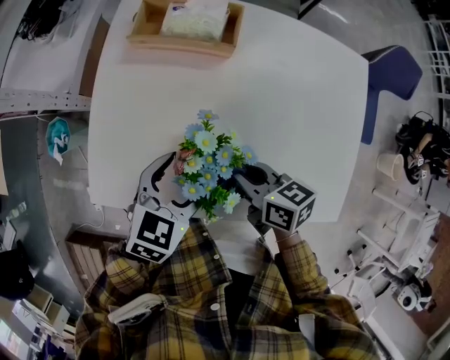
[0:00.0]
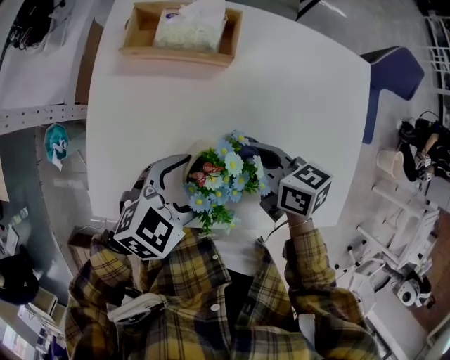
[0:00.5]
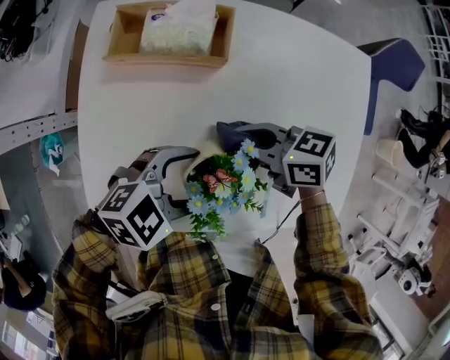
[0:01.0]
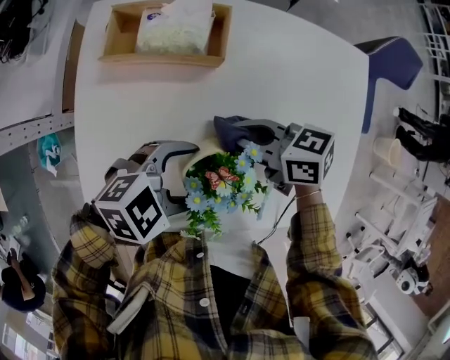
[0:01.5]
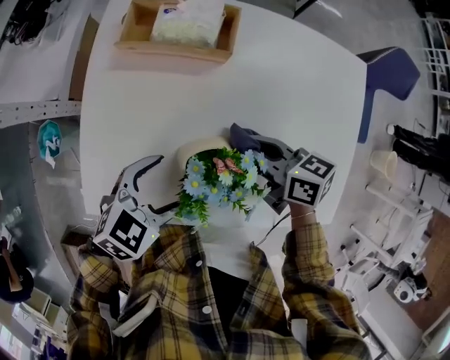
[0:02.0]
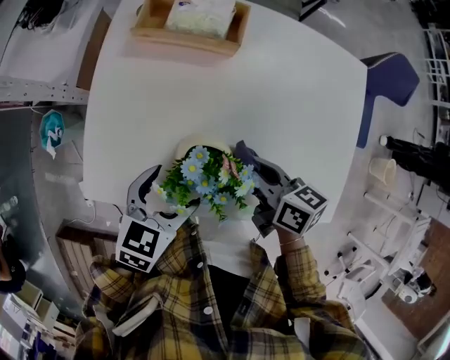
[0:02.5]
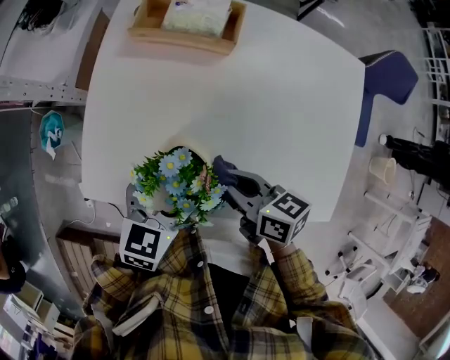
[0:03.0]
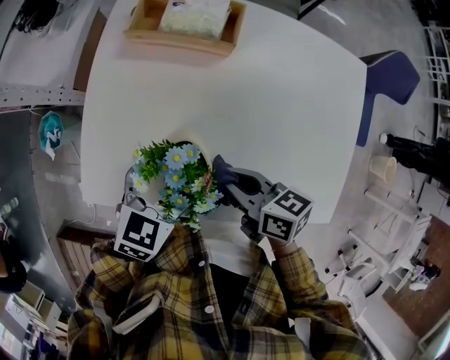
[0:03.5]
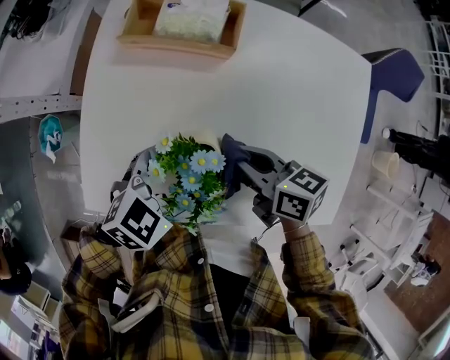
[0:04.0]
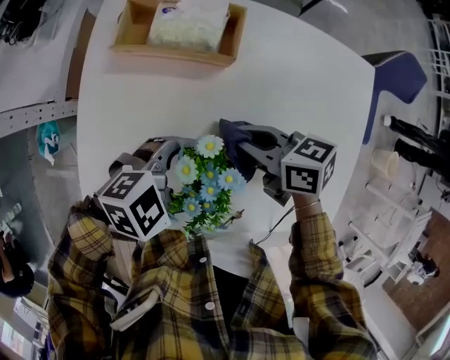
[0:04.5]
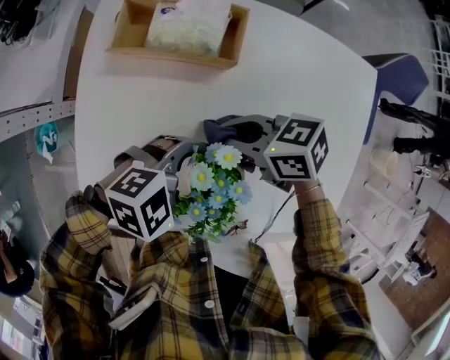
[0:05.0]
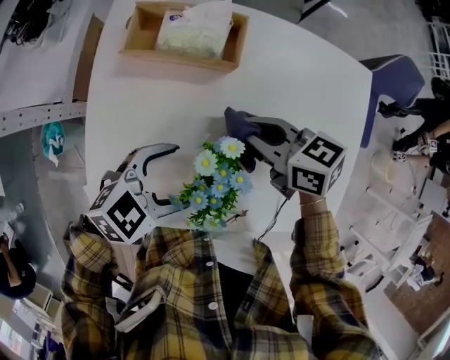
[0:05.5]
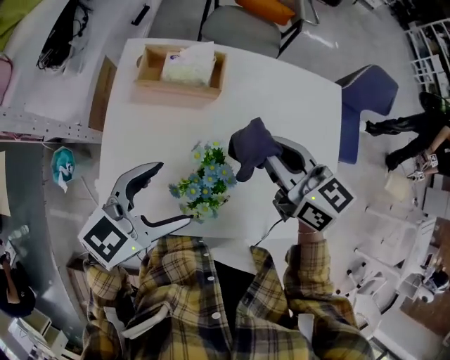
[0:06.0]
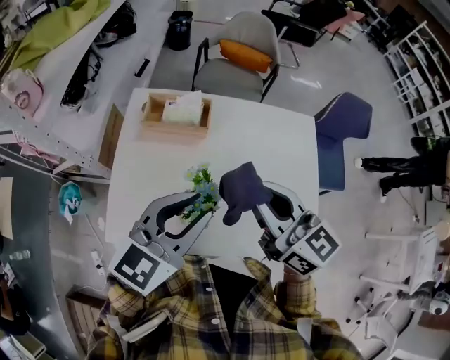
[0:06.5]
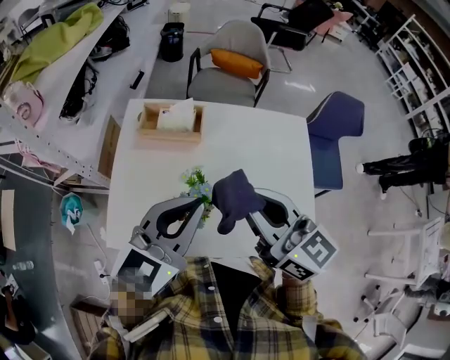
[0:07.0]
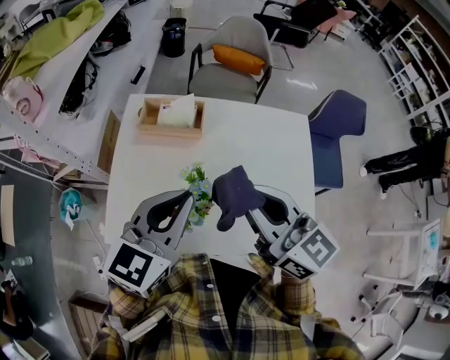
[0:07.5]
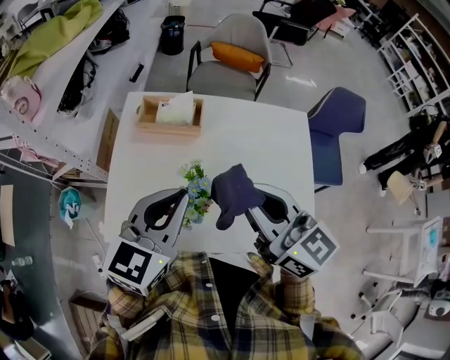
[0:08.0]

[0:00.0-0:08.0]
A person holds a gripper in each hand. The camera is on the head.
0:00.0 to 0:02.0: The right gripper changes place by about 10 cm.
0:04.0 to 0:06.0: Both grippers move upward, approximately 15 cm. The right gripper turns by roughly 30 degrees.
0:06.0 to 0:08.0: The left gripper moves upward, some 10 cm, turns by some 20 degrees, and closes its fingers. The right gripper shifts roughly 15 cm upward and backward.

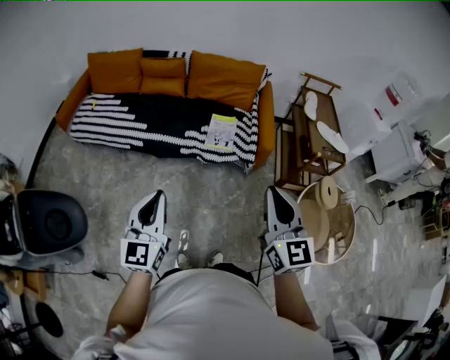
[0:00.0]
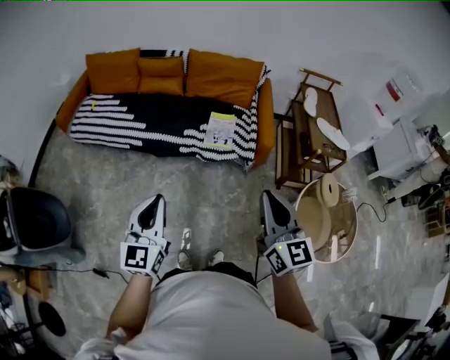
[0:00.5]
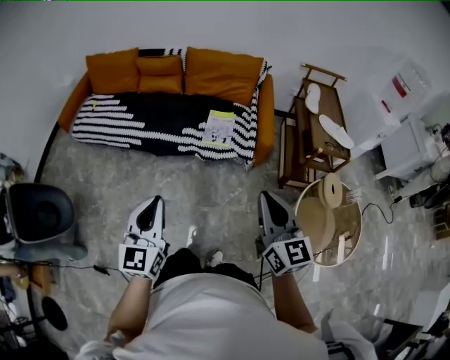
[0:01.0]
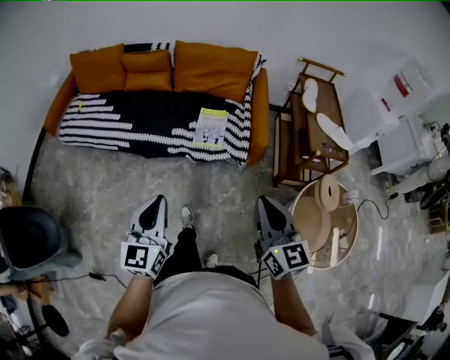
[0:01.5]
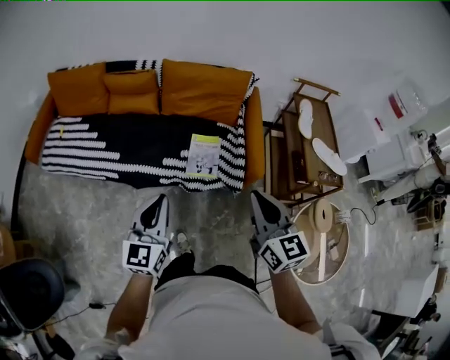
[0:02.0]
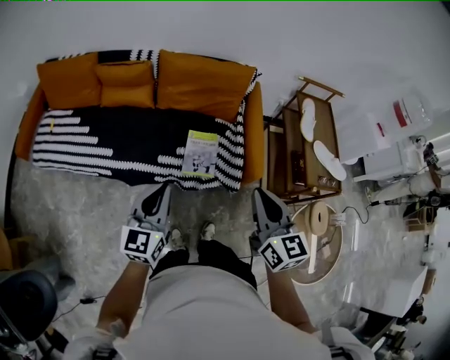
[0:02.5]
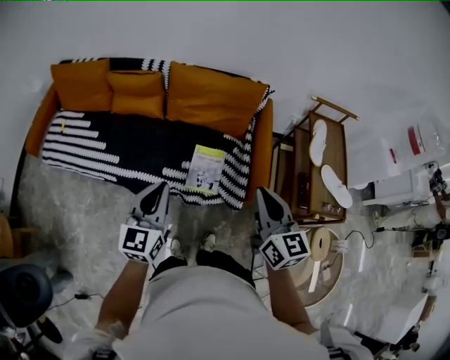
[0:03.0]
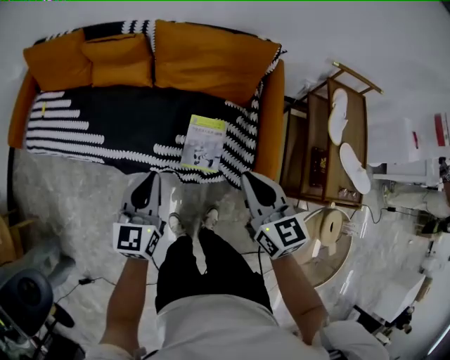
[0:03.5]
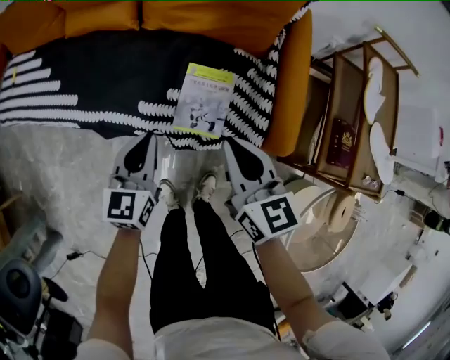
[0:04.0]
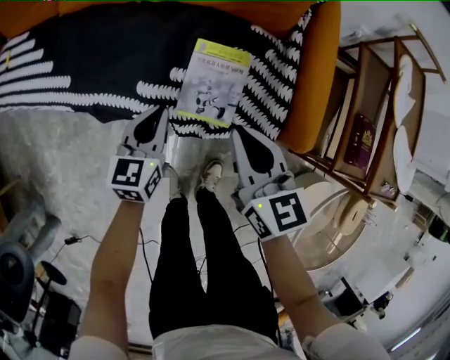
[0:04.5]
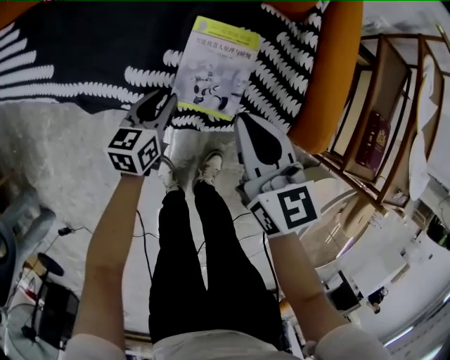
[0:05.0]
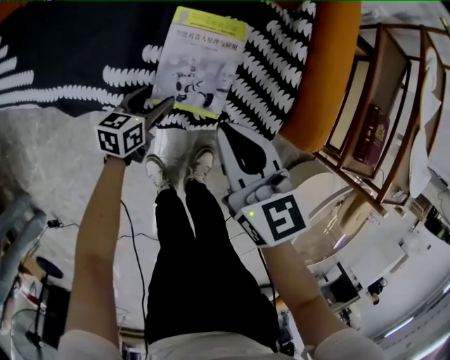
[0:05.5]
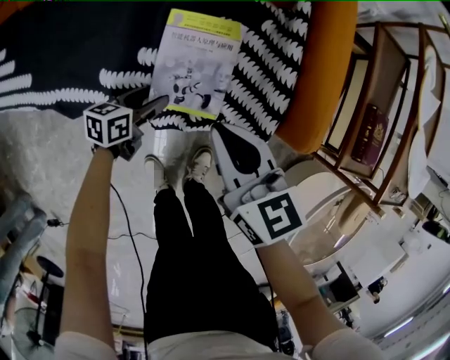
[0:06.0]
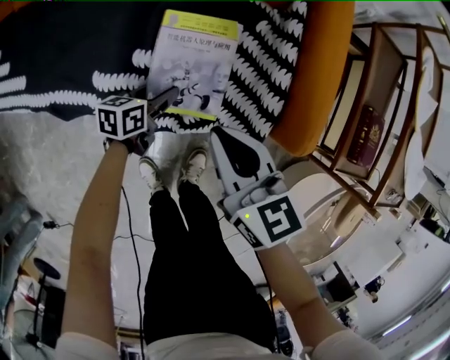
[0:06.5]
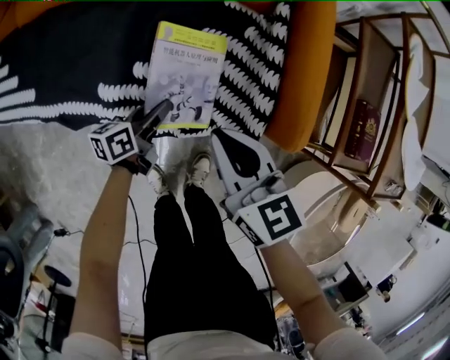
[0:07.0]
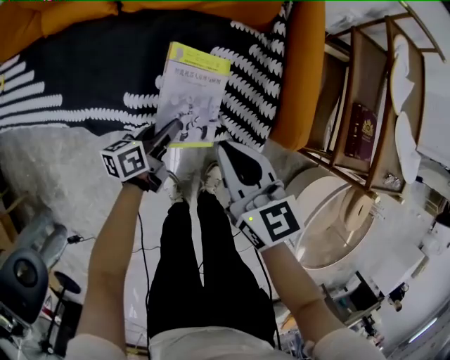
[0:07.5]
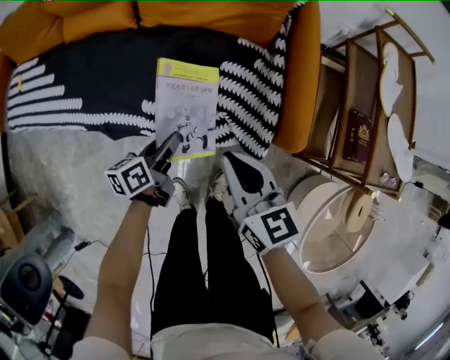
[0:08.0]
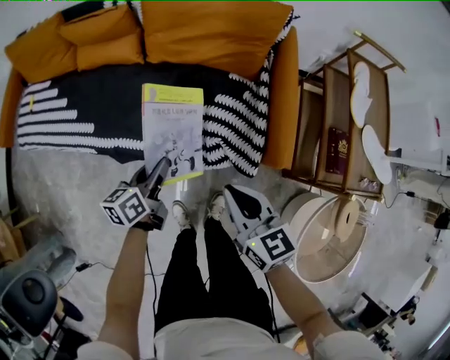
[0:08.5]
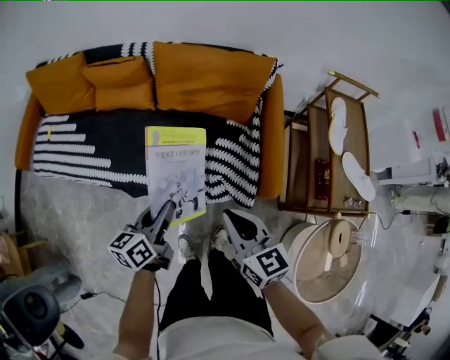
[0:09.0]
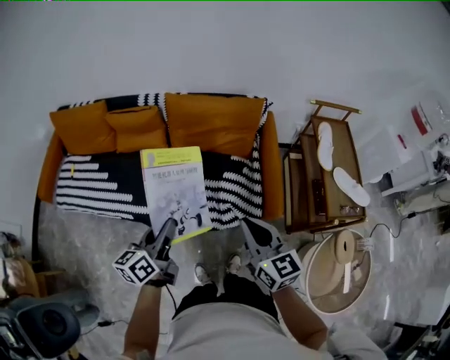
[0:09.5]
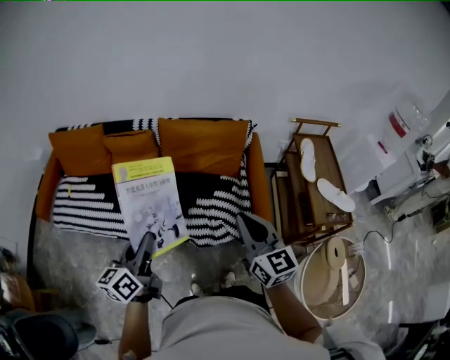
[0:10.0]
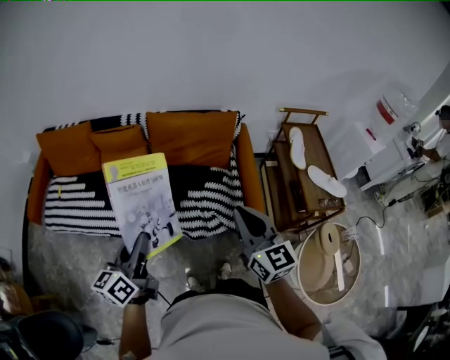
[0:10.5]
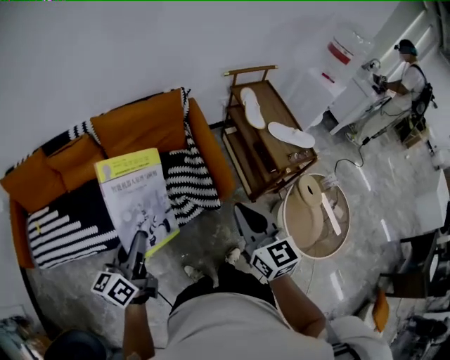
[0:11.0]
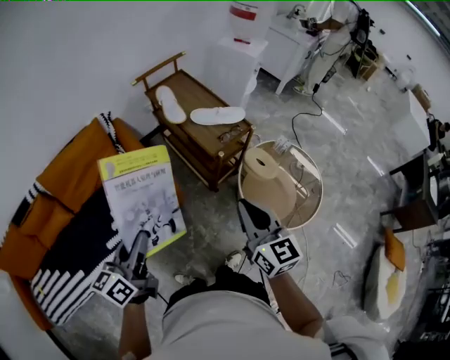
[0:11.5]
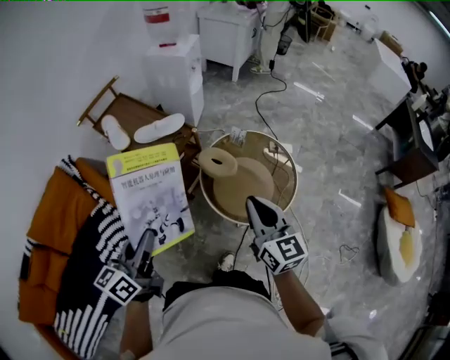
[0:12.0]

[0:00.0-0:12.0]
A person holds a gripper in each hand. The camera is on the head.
0:00.0 to 0:02.0: The two grippers go about 30 cm forward.
0:02.0 to 0:04.0: Both grippers move forward and downward, roughly 40 cm.
0:04.0 to 0:06.0: The right gripper heads downward, covering some 15 cm; the left gripper shifts approximately 30 cm downward, rotates some 40 degrees, and opens up.
0:06.0 to 0:08.0: The left gripper shifts about 15 cm upward and to the right, and closes its fingers, while the right gripper moves to the right and backward, some 10 cm.
0:08.0 to 0:10.0: The right gripper shifts roughly 15 cm to the right, downward and forward, and turns by roughly 20 degrees, while the left gripper reaches approximately 20 cm downward, then returns.
0:10.0 to 0:12.0: The pair of grippers is taken some 60 cm. The right gripper turns by approximately 60 degrees. Meanwhile the left gripper rotates some 60 degrees.

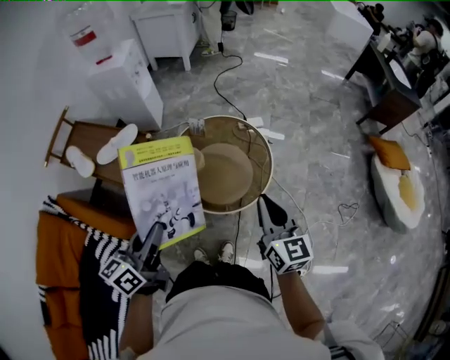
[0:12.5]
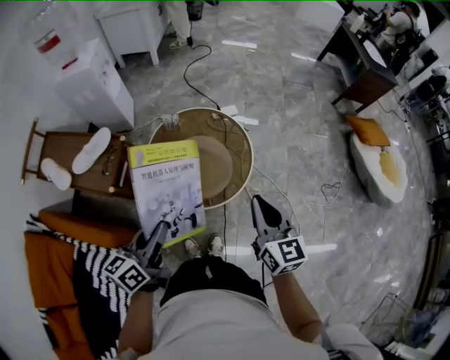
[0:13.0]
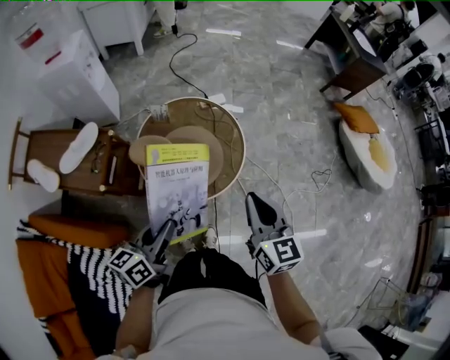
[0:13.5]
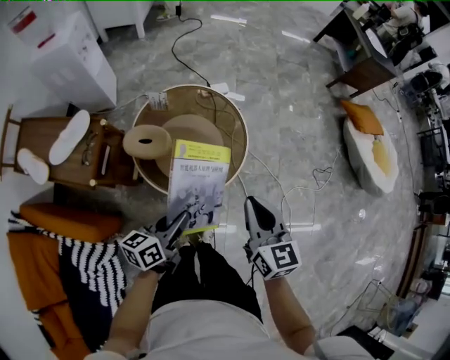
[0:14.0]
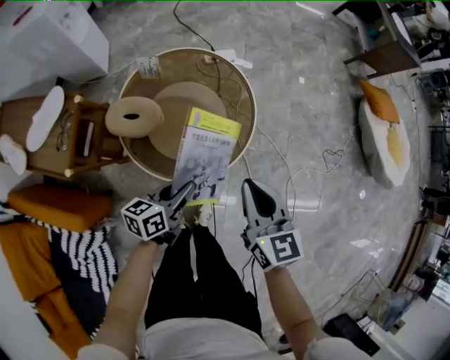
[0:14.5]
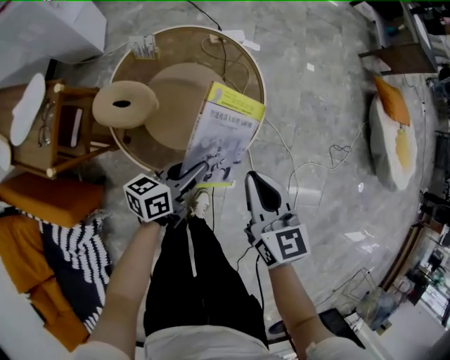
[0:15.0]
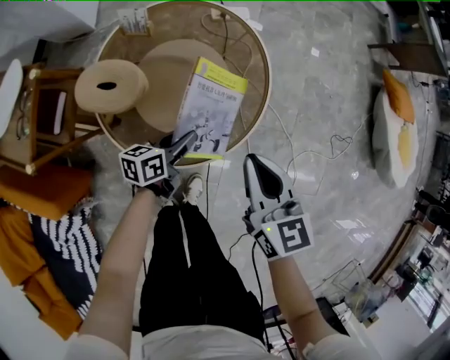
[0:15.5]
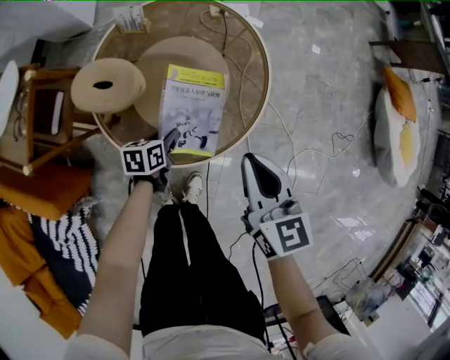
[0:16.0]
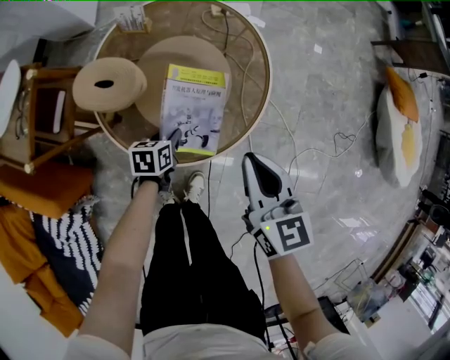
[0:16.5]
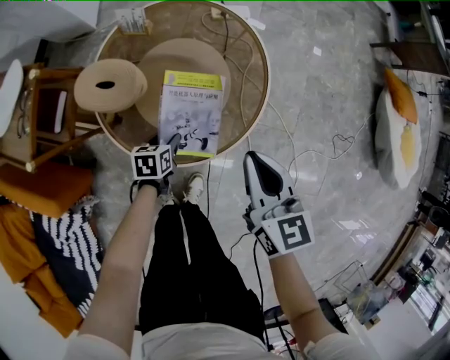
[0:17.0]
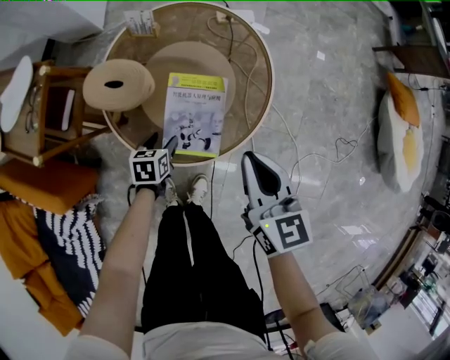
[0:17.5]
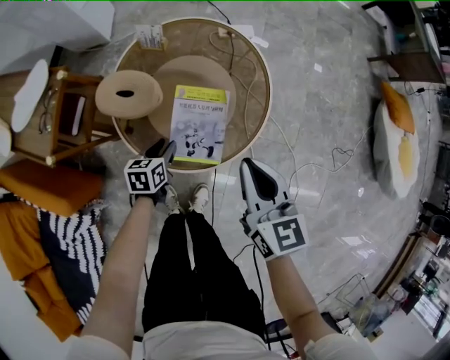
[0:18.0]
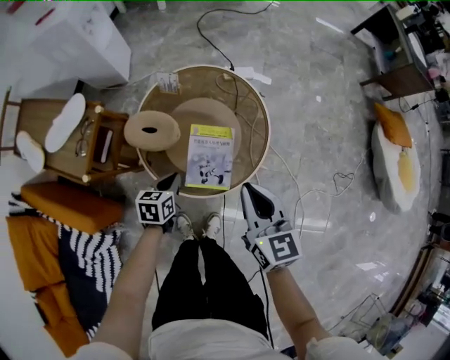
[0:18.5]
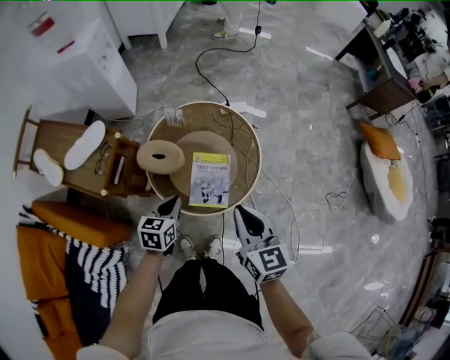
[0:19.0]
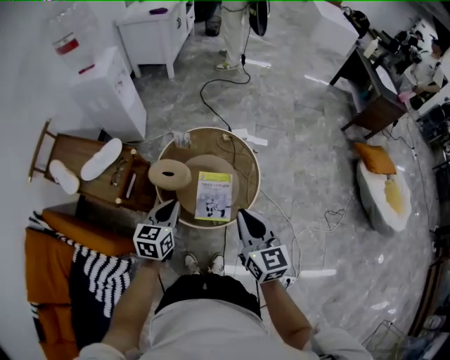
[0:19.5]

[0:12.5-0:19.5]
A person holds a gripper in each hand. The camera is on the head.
0:12.5 to 0:14.5: The left gripper is displaced downward and forward by about 35 cm, and rotates roughly 30 degrees. Meanwhile the right gripper travels downward by some 20 cm.
0:14.5 to 0:16.0: The right gripper heads downward and forward, covering some 15 cm, while the left gripper is displaced downward by some 25 cm, and turns by approximately 30 degrees.
0:16.0 to 0:17.5: The left gripper opens.
0:17.5 to 0:19.5: The left gripper shifts some 40 cm upward, tips its fingers upward by roughly 30 degrees, and closes. The right gripper shifts about 25 cm upward.
